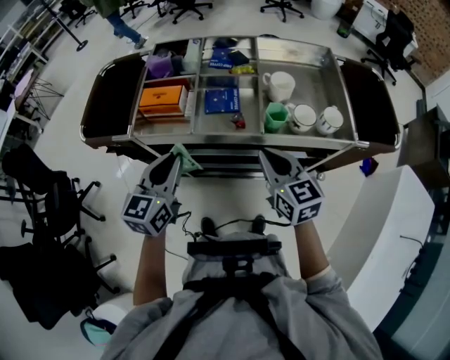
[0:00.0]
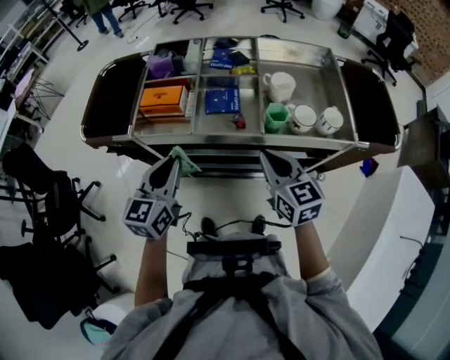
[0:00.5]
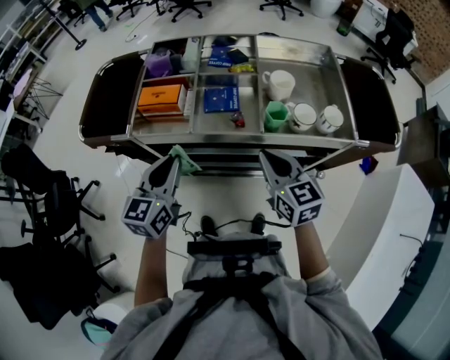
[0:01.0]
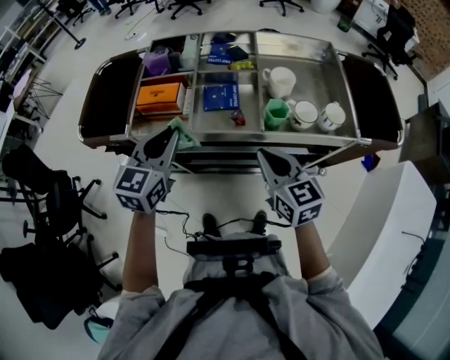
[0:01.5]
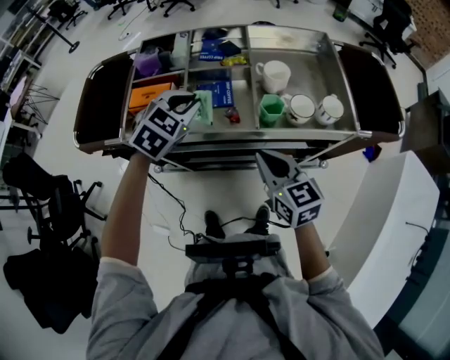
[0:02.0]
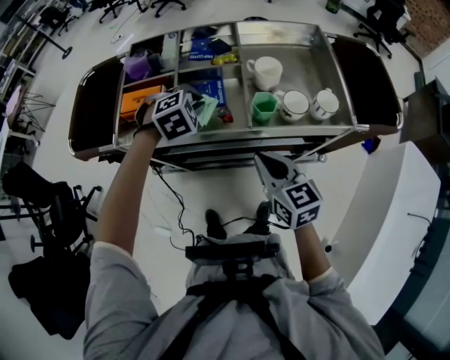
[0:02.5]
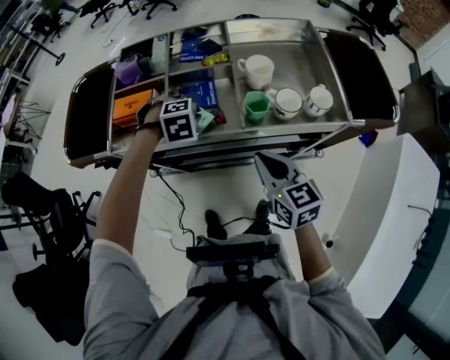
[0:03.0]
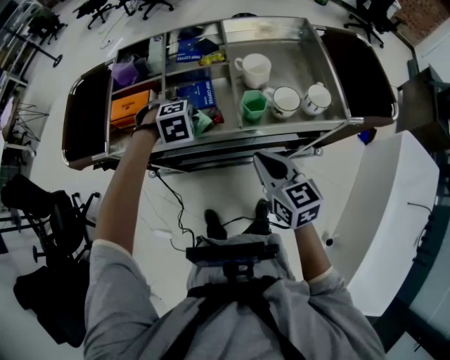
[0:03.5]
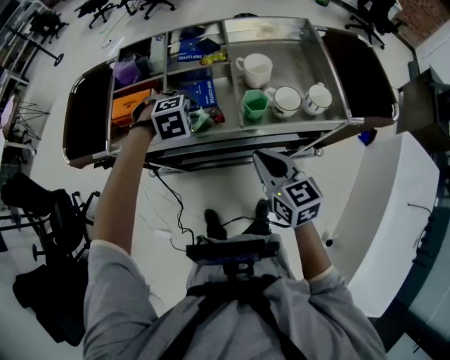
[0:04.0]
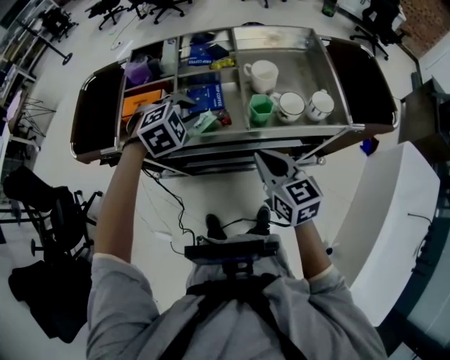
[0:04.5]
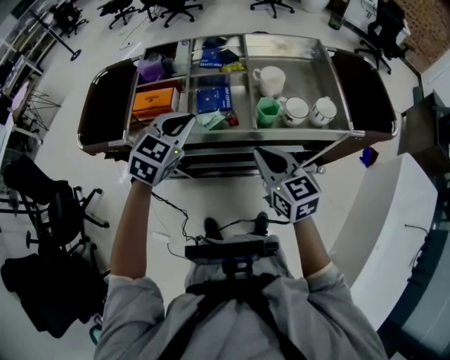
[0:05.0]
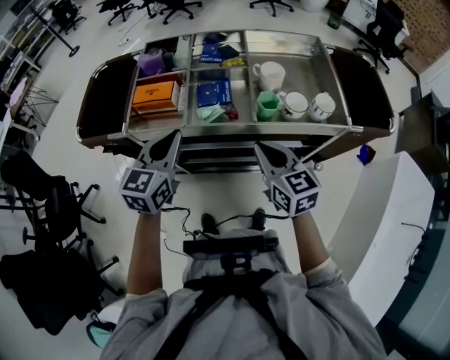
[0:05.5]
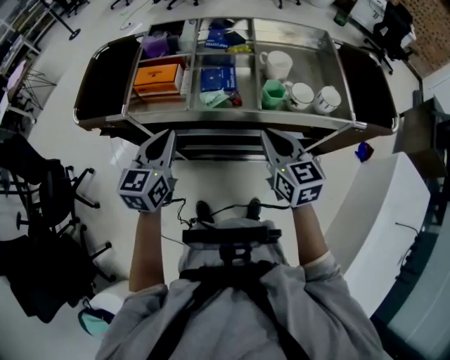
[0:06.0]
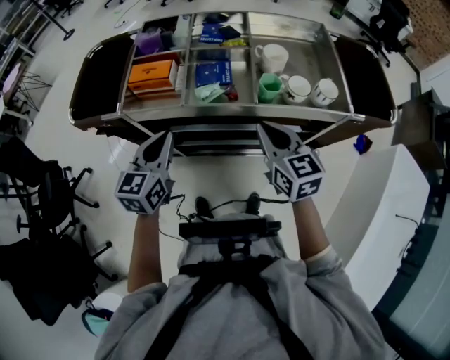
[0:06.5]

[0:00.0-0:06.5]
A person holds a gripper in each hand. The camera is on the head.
0:00.0 to 0:02.0: The left gripper heads forward and to the right, covering roughly 15 cm, and turns by approximately 50 degrees.
0:02.0 to 0:04.5: The left gripper travels downward and back again, about 15 cm each way, and turns by roughly 30 degrees.
0:04.5 to 0:06.5: The left gripper is displaced backward and to the left by approximately 20 cm, rolls counterclockwise, seen from behind, by some 60 degrees, and closes.

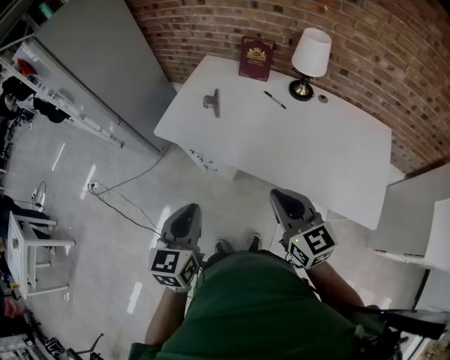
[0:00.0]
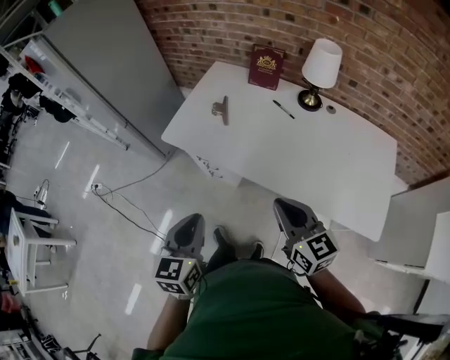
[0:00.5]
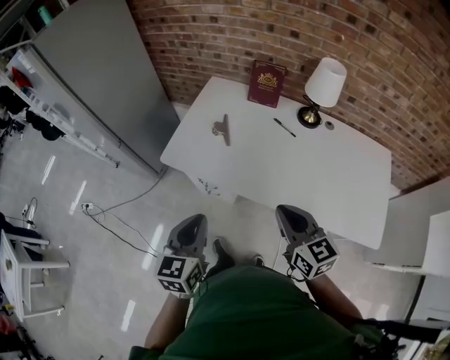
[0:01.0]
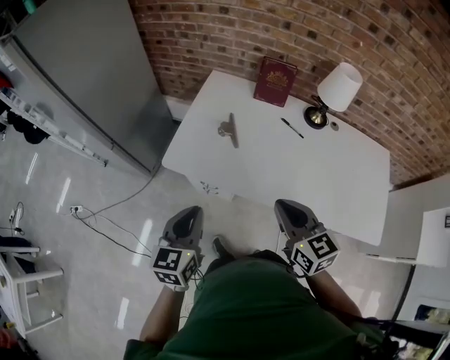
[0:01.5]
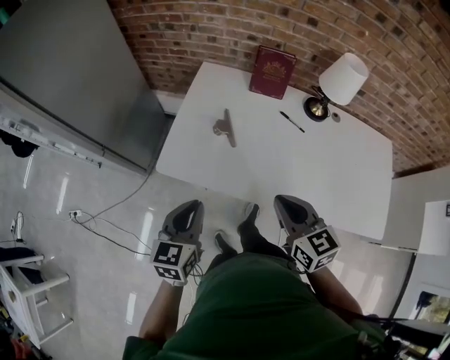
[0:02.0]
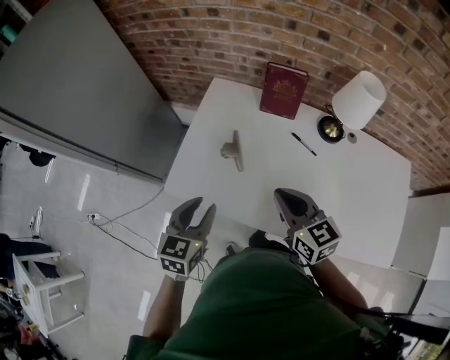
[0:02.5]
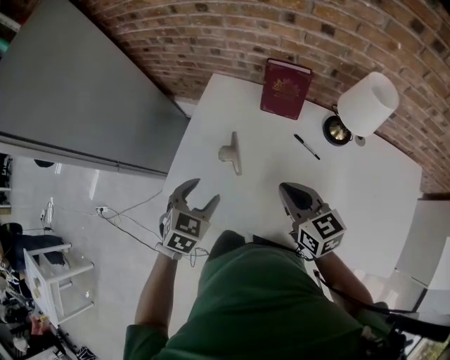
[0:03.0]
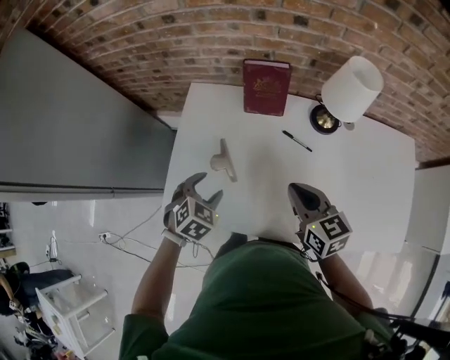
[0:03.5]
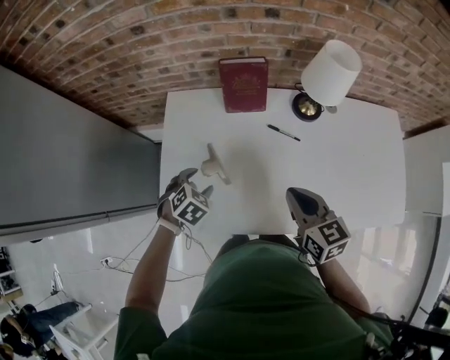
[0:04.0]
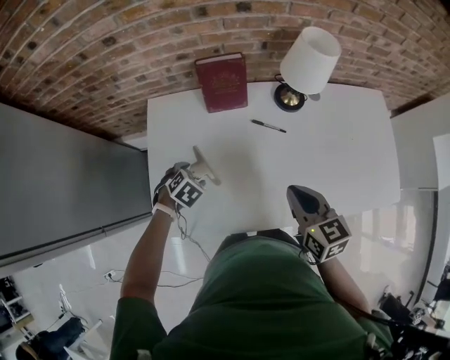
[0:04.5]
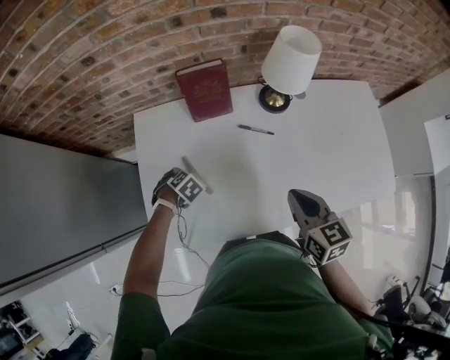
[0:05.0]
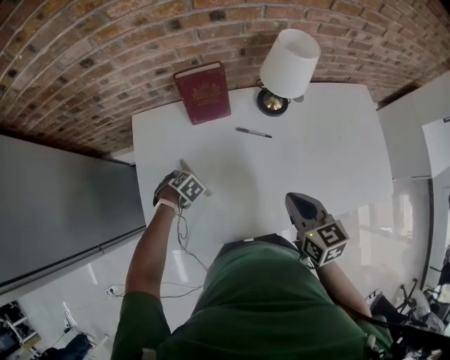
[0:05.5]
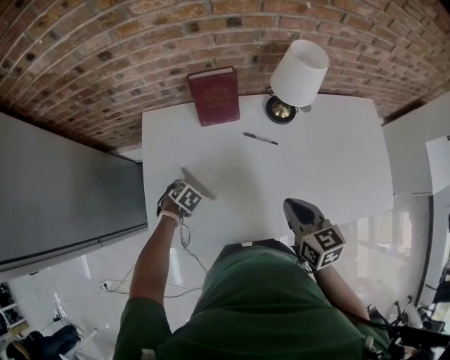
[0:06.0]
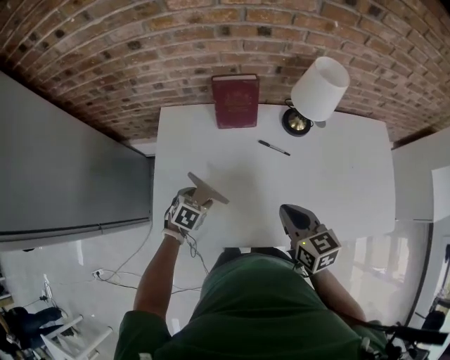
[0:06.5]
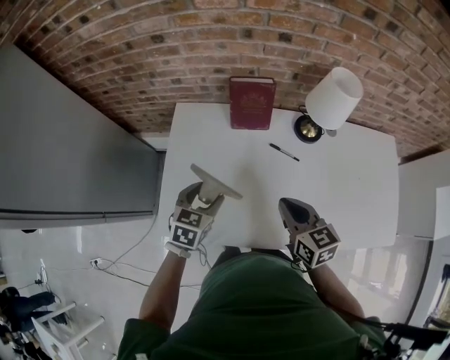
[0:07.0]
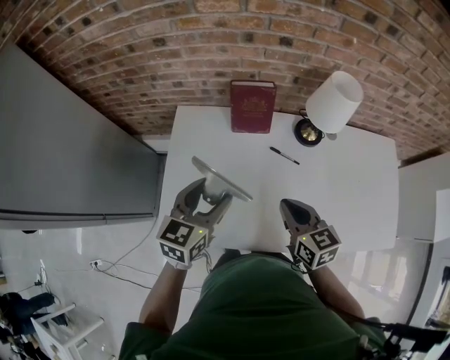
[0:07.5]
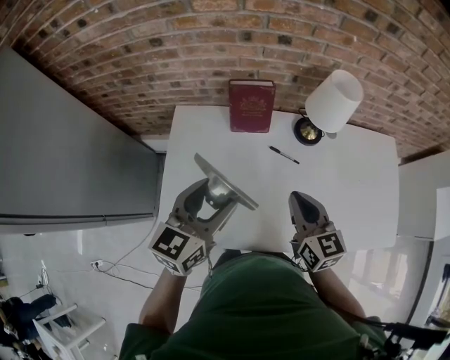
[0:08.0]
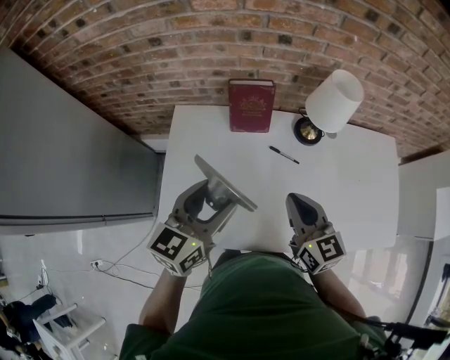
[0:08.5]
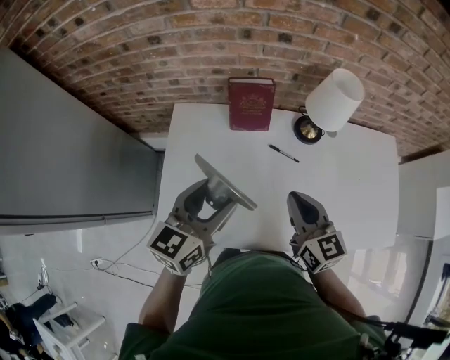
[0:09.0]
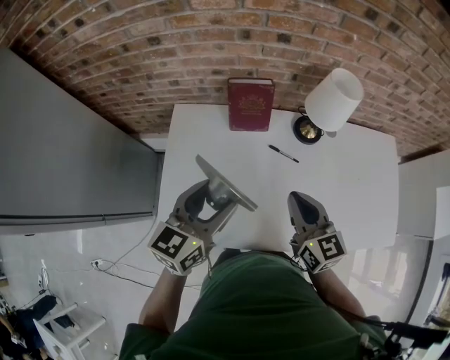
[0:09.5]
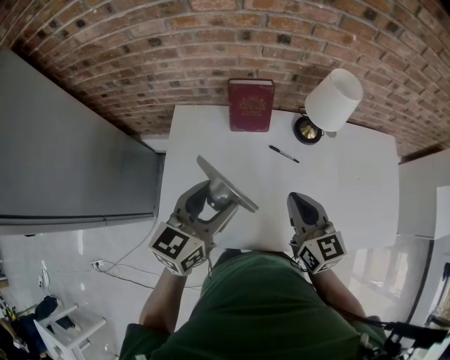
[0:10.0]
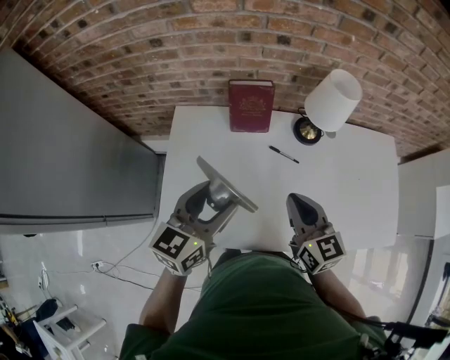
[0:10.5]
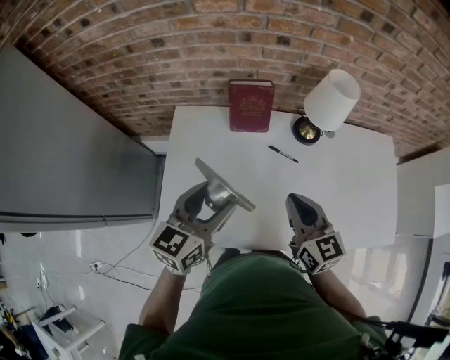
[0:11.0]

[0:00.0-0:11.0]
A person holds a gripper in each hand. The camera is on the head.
0:00.0 to 0:02.0: The grippers both shift forward and to the left by some 25 cm.
0:02.0 to 0:03.5: The right gripper moves forward and to the right, approximately 20 cm. The left gripper travels forward, to the right and downward by approximately 25 cm, points its fingers roughly 30 degrees further downward, and opens.
0:03.5 to 0:05.5: The left gripper travels downward by some 20 cm, and angles its fingers downward, by roughly 30 degrees; the right gripper moves some 10 cm, and changes its angle by some 20 degrees.
0:05.5 to 0:07.5: The right gripper changes place by some 10 cm; the left gripper is displaced upward by roughly 30 cm, and angles its fingers upward, by roughly 70 degrees.
0:07.5 to 0:09.0: The right gripper moves upward, about 5 cm.
0:09.0 to 0:11.0: There are only small adjustments of the grippers.

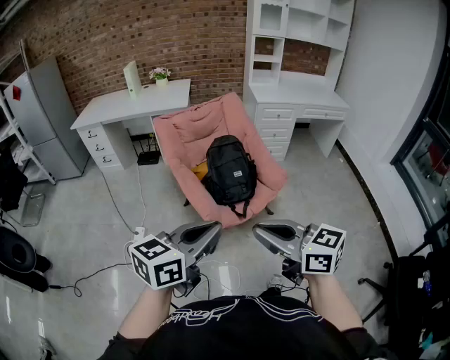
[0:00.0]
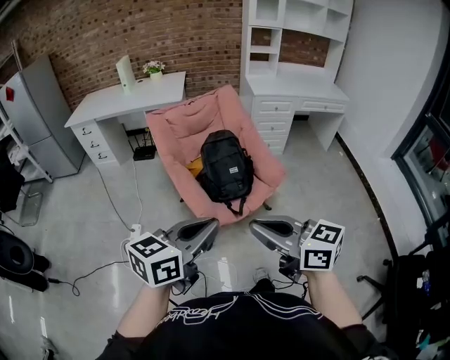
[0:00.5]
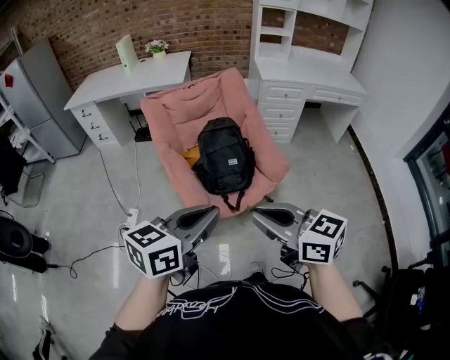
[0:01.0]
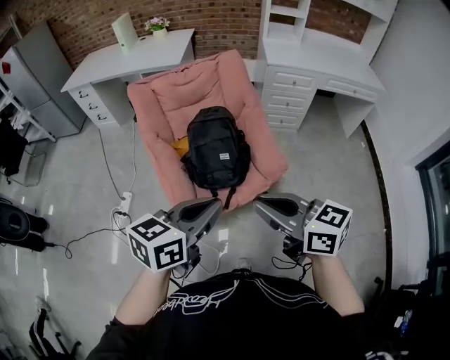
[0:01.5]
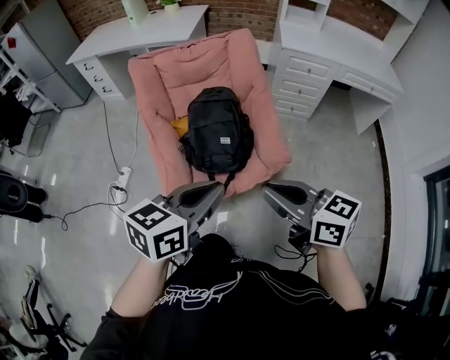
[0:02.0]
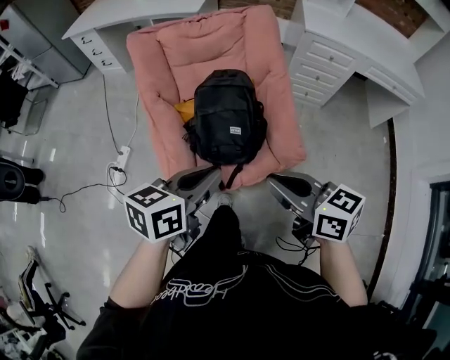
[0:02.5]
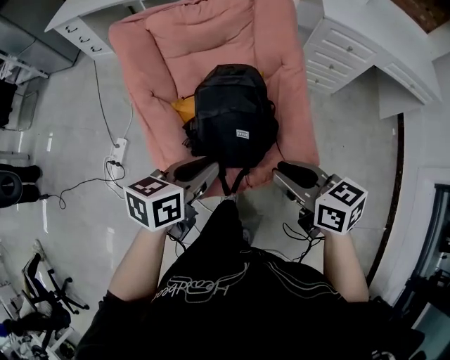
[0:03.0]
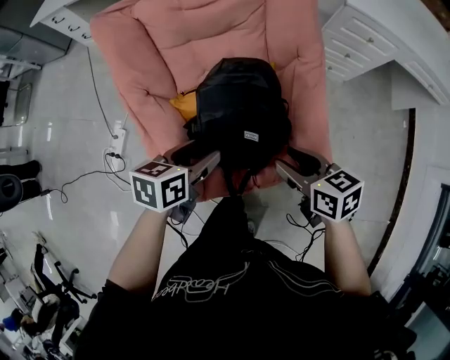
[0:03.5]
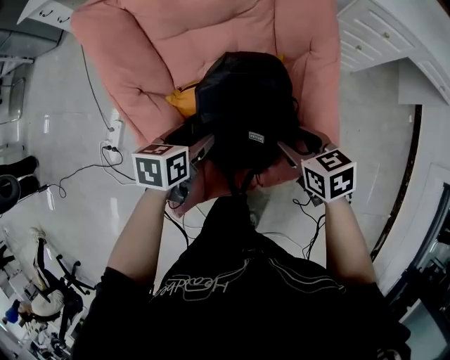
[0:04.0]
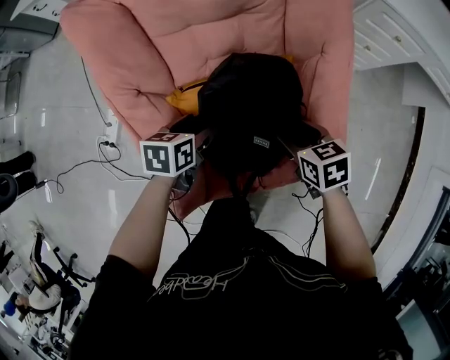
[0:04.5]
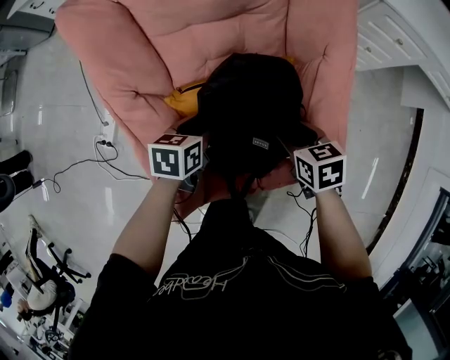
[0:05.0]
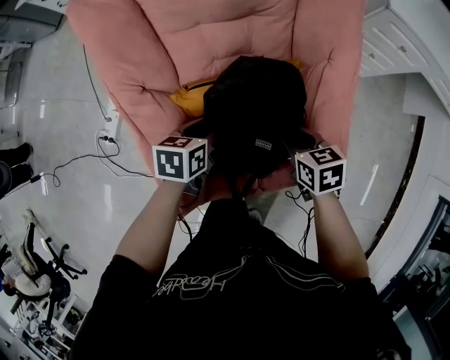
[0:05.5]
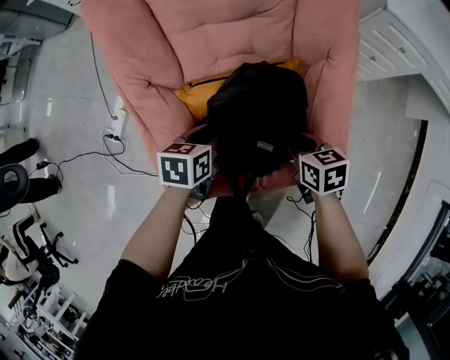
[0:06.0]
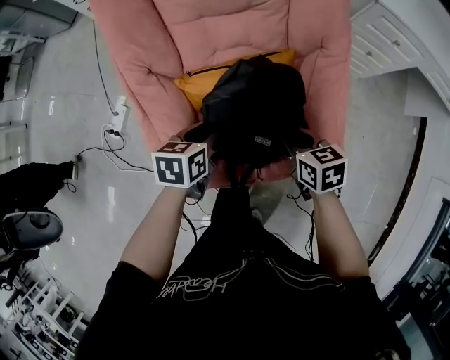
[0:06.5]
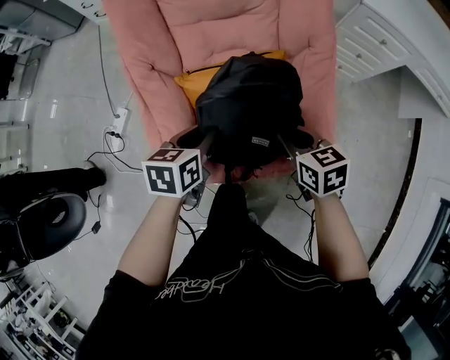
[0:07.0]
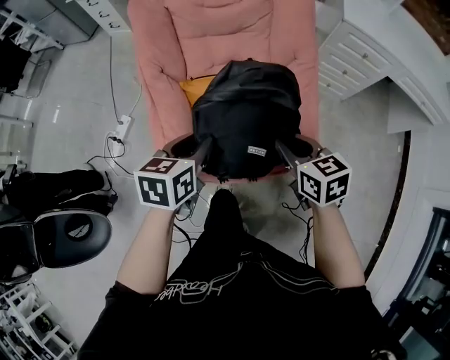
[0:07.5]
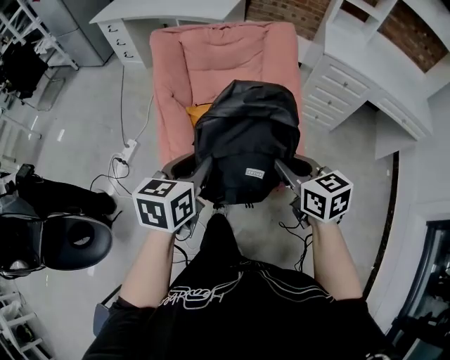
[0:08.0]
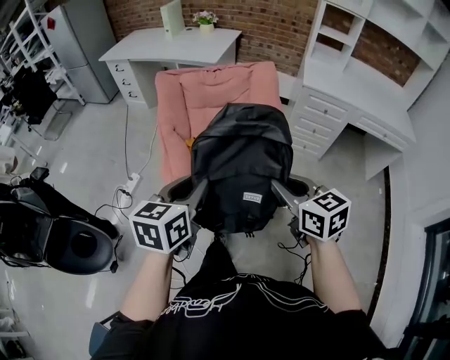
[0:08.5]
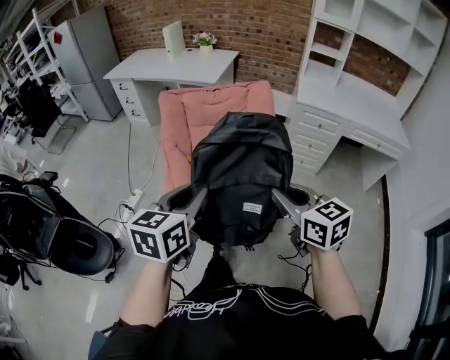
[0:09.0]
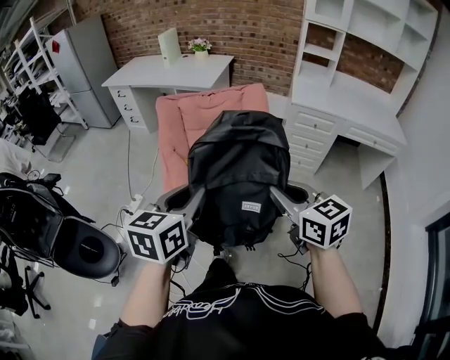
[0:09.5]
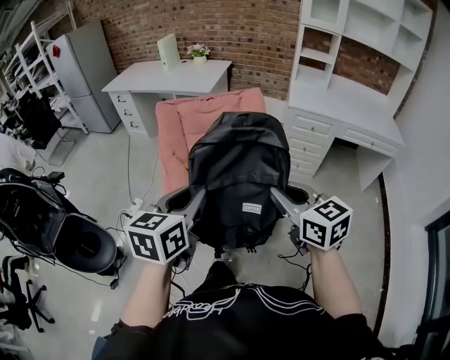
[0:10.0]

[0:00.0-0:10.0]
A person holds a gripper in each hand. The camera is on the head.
0:00.0 to 0:02.0: The grippers both shift forward and to the right by roughly 30 cm. The left gripper changes its angle by some 20 degrees.
0:02.0 to 0:04.0: Both grippers travel together downward and forward, roughly 40 cm. The left gripper swivels about 30 degrees, and opens its fingers. The right gripper angles its fingers downward, by roughly 40 degrees, and opens up.
0:04.0 to 0:06.0: The left gripper closes. Meanwhile the right gripper shifts some 5 cm downward, and closes its fingers.
0:06.0 to 0:08.0: The two grippers go approximately 30 cm upward and backward. The right gripper changes its angle by about 30 degrees, while the left gripper changes its angle by about 30 degrees.
0:08.0 to 0:10.0: The two grippers go about 20 cm upward and backward.
